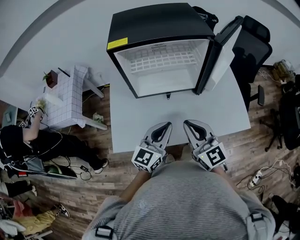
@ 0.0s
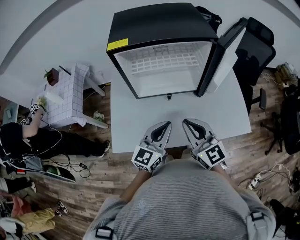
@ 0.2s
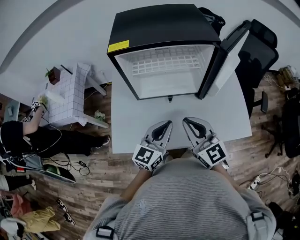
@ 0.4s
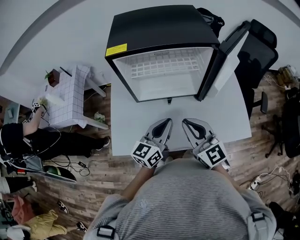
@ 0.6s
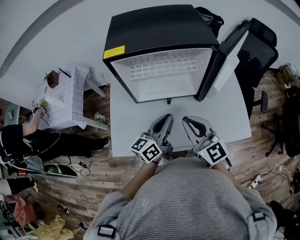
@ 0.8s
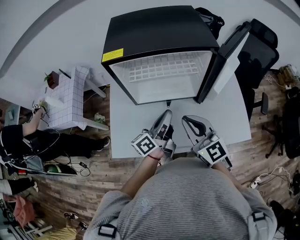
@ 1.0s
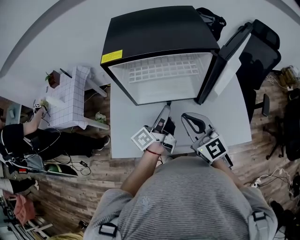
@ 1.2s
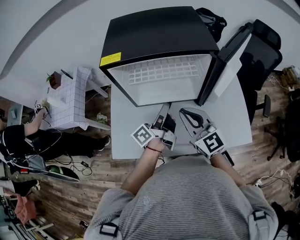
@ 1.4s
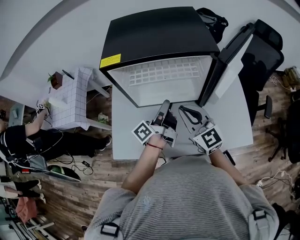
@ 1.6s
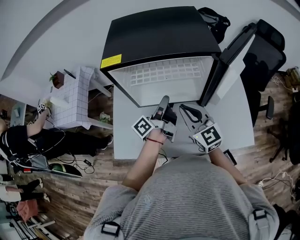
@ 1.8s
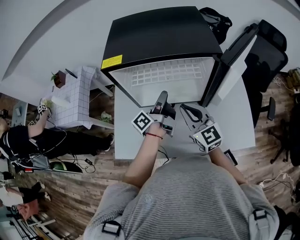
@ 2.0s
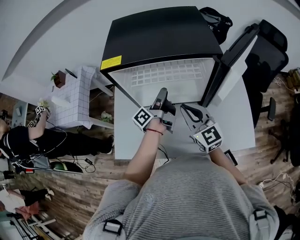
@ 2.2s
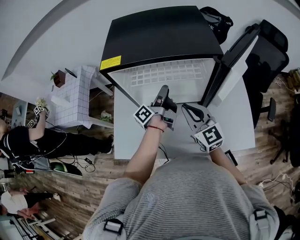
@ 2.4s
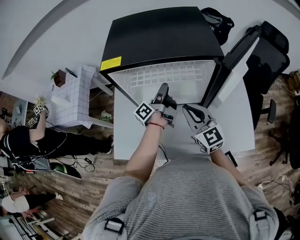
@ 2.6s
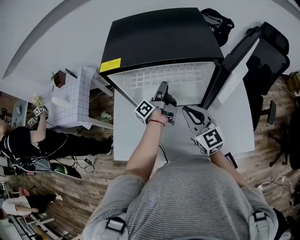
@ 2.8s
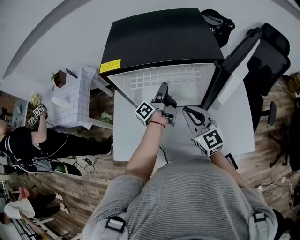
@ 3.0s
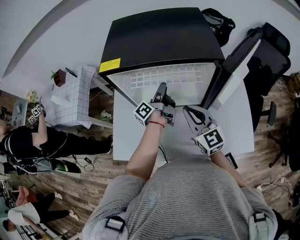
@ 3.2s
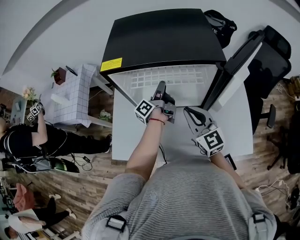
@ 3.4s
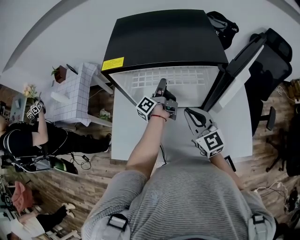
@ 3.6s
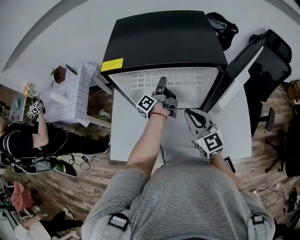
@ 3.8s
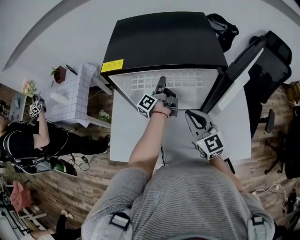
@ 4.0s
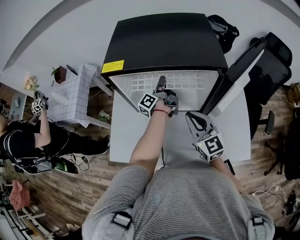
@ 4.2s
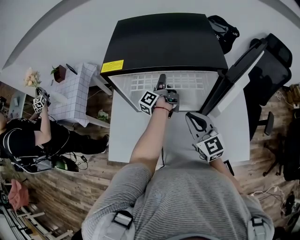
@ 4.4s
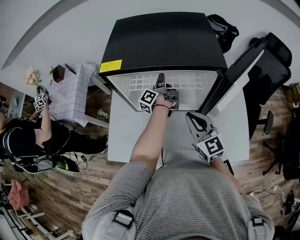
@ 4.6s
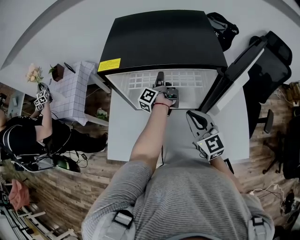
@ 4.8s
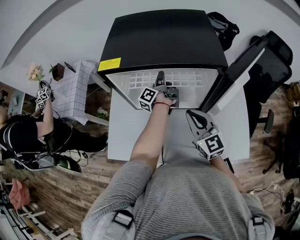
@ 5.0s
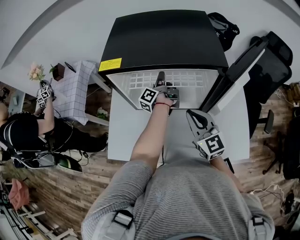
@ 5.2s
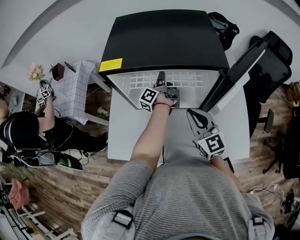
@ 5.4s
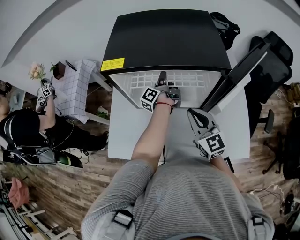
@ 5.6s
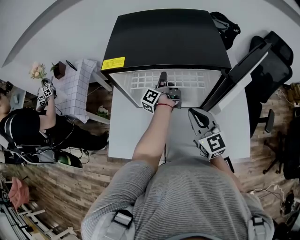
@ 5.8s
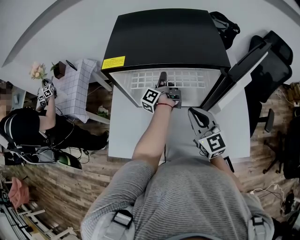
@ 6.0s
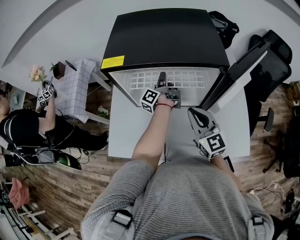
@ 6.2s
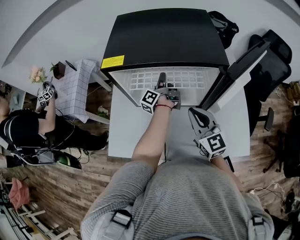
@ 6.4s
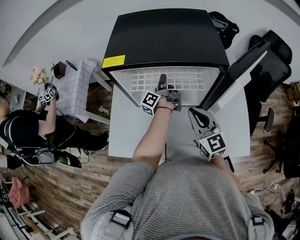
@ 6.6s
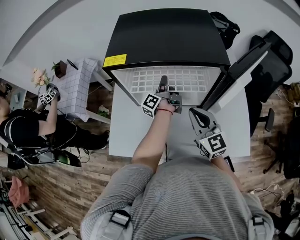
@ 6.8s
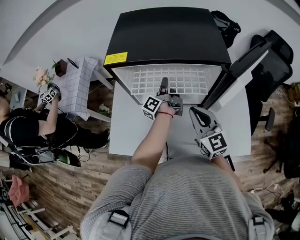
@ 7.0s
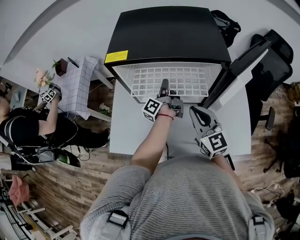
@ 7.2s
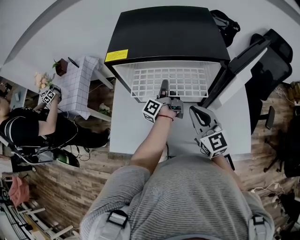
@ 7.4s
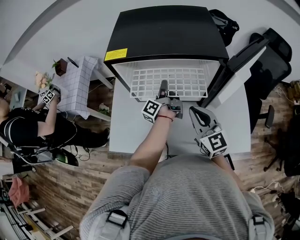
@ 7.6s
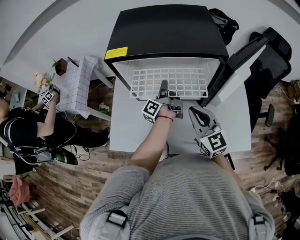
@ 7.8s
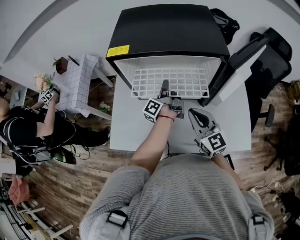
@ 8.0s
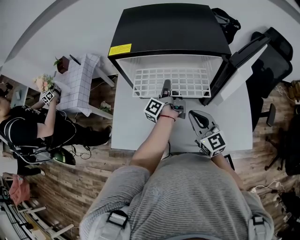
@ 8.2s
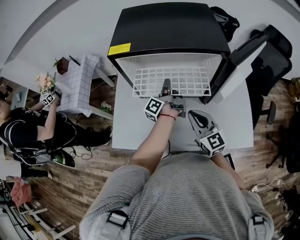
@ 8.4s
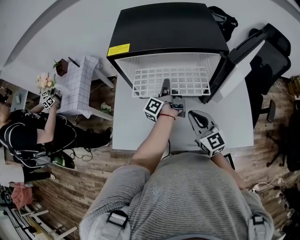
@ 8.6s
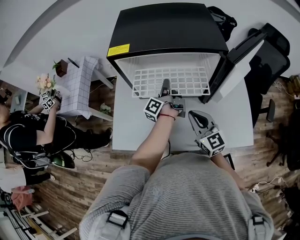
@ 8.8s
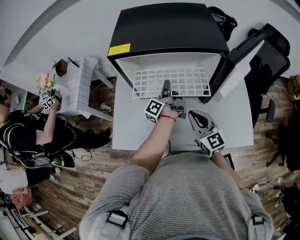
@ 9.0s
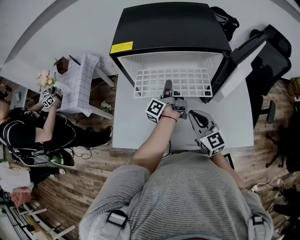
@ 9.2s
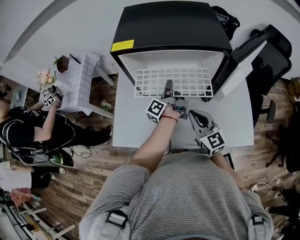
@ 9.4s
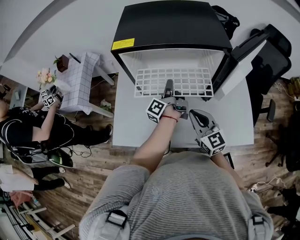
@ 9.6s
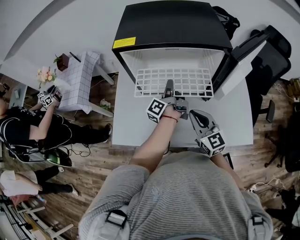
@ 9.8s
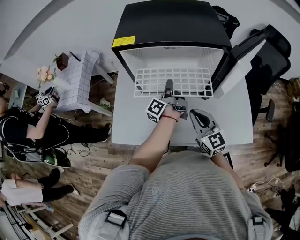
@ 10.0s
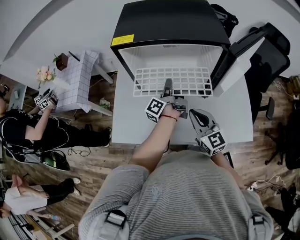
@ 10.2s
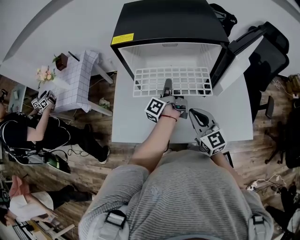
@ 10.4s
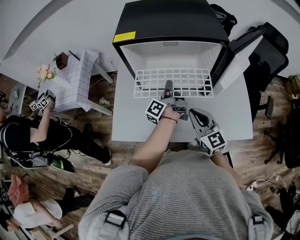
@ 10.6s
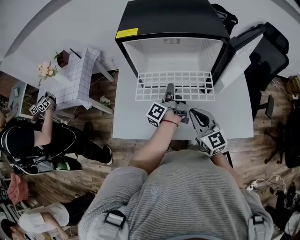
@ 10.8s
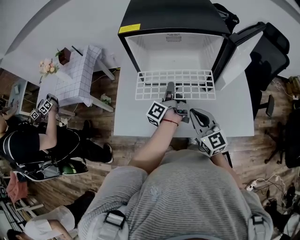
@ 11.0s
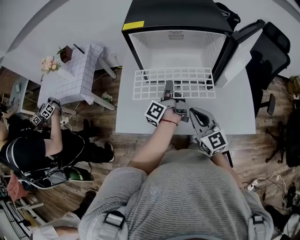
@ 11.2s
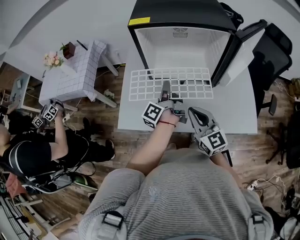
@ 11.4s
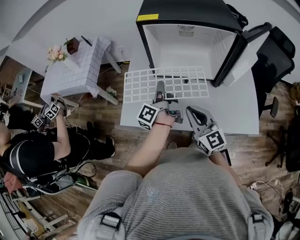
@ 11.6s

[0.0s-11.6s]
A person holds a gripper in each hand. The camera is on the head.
0.0s to 1.4s: The two grippers go some 15 cm forward. The left gripper rotates around the line of its fingers by roughly 70 degrees, counterclockwise from behind.
1.4s to 2.8s: The right gripper changes place by about 5 cm; the left gripper is displaced forward by some 15 cm, and opens.
2.8s to 4.4s: The left gripper travels forward by some 10 cm.
4.4s to 5.8s: The left gripper closes up.
5.8s to 7.2s: The left gripper travels backward by approximately 5 cm.
7.2s to 8.8s: The right gripper travels downward by approximately 5 cm.
8.8s to 10.2s: The grippers make only small movements.
10.2s to 11.6s: Both grippers move to the left and backward, approximately 15 cm.

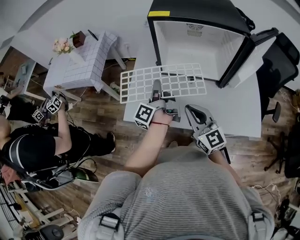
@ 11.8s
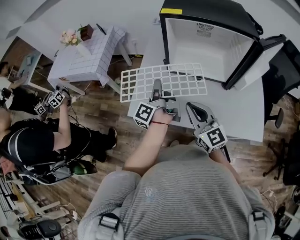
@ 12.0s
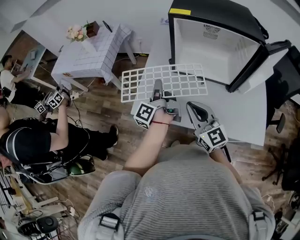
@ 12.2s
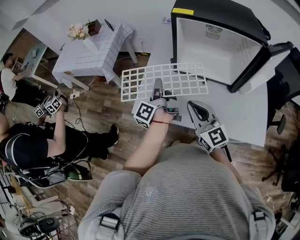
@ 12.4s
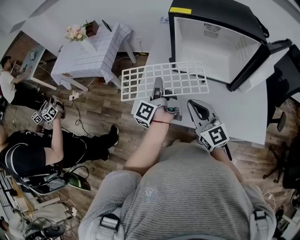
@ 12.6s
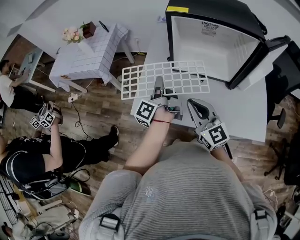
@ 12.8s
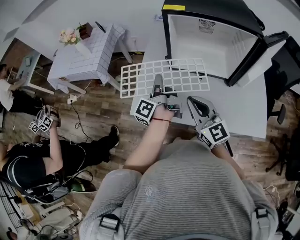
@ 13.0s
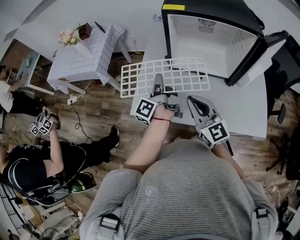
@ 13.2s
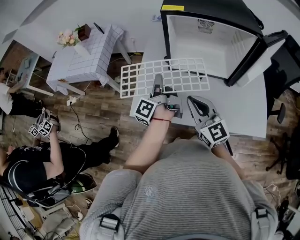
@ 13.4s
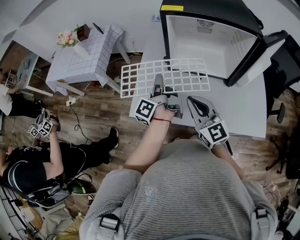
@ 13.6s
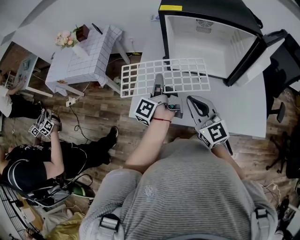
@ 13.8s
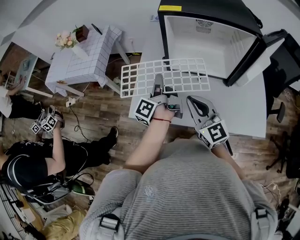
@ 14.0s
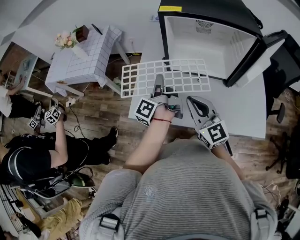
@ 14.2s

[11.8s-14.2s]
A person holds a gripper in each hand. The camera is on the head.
13.0s to 14.2s: The grippers move only a little.

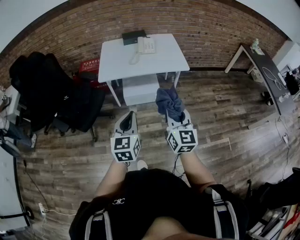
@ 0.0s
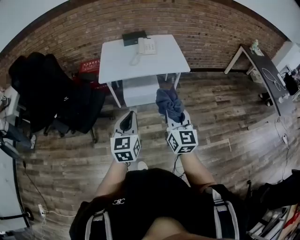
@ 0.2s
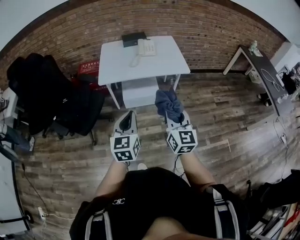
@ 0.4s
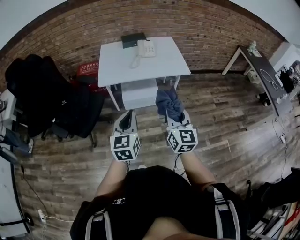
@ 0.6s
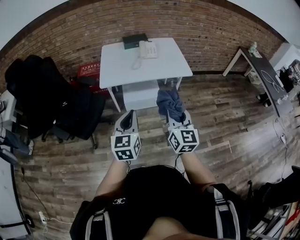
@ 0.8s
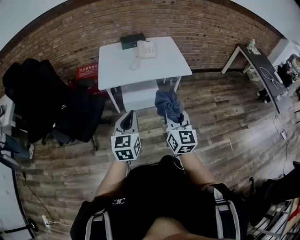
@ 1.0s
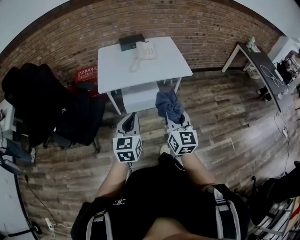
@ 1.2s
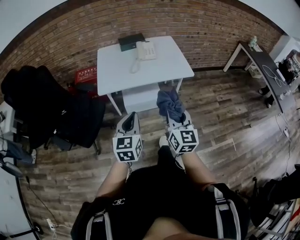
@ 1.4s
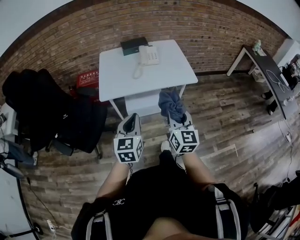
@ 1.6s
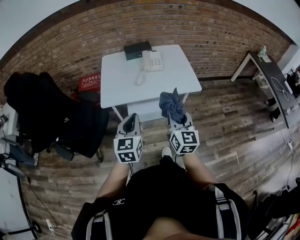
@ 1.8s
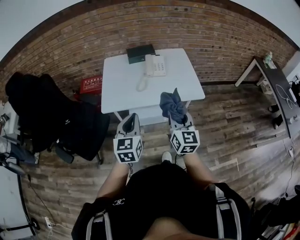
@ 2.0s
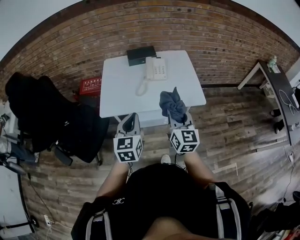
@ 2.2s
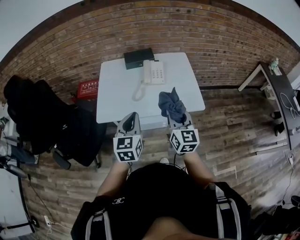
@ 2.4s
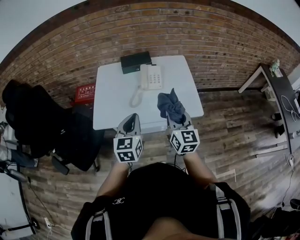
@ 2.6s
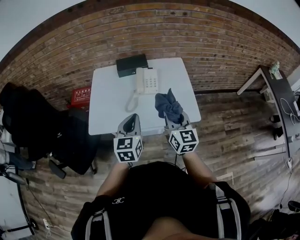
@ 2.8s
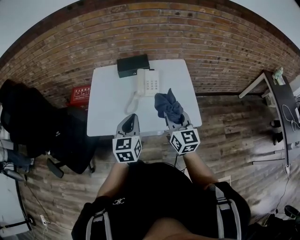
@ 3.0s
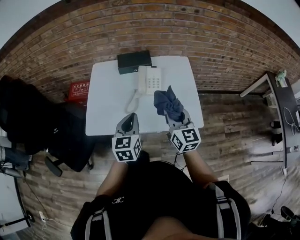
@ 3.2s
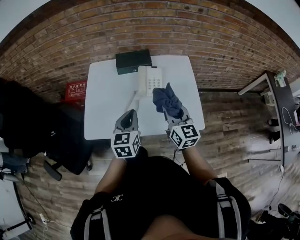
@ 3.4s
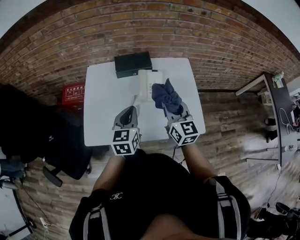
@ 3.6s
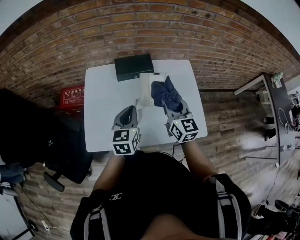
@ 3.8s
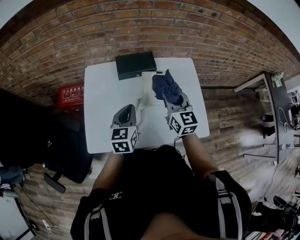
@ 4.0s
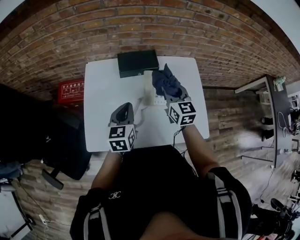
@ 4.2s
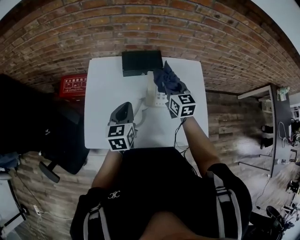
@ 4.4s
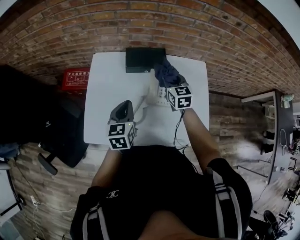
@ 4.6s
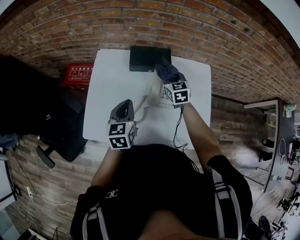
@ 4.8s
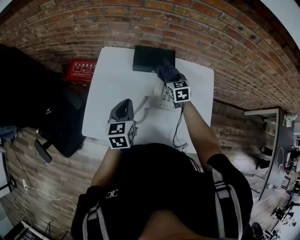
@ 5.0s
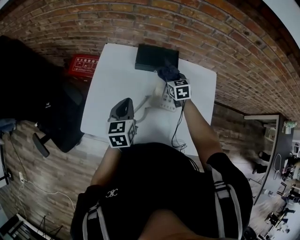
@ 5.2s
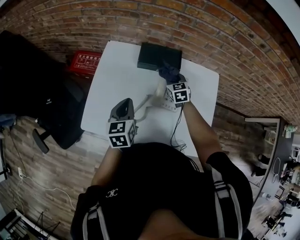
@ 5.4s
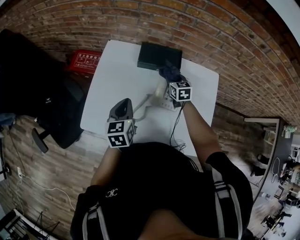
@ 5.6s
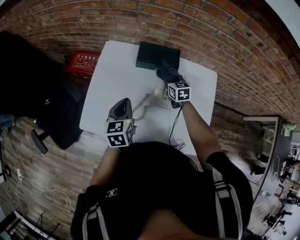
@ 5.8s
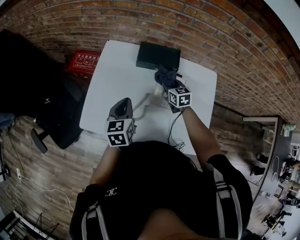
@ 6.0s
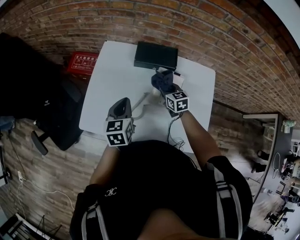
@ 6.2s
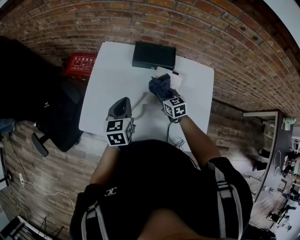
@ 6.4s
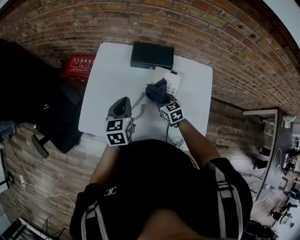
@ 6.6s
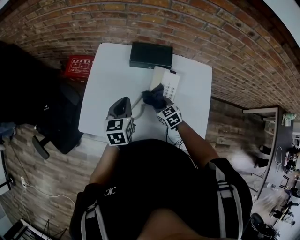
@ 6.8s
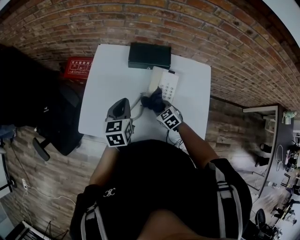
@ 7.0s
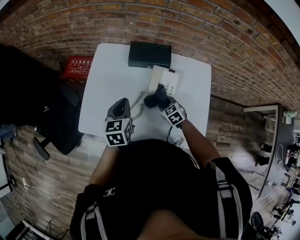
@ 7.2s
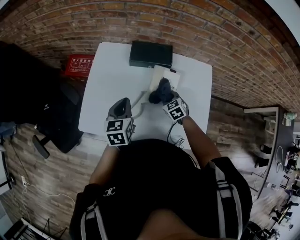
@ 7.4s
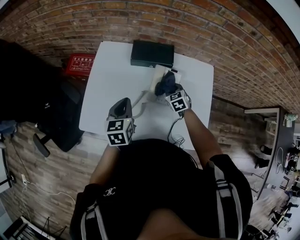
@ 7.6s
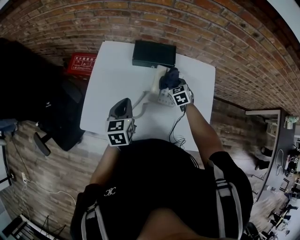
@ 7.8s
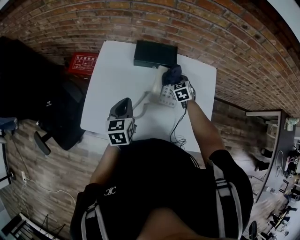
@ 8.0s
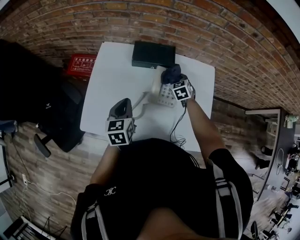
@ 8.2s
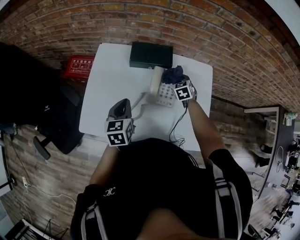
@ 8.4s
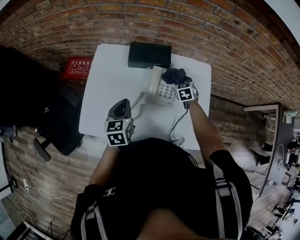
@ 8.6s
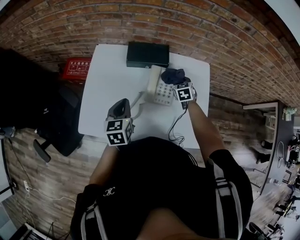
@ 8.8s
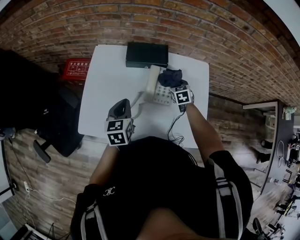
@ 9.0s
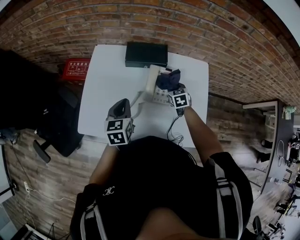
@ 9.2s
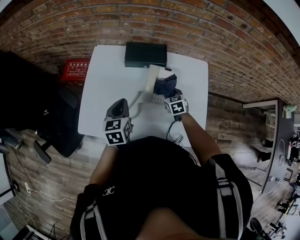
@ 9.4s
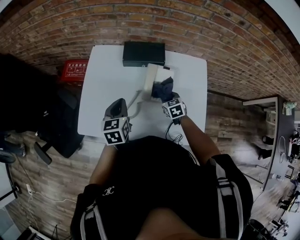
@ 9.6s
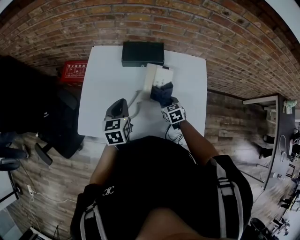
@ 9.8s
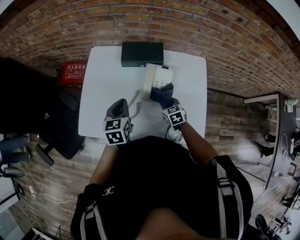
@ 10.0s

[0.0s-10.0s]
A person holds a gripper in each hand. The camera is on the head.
0.0s to 1.4s: The two grippers go some 10 cm forward and to the left.
1.4s to 2.8s: Both grippers travel together forward, about 35 cm.
2.8s to 4.2s: Both grippers travel together forward, roughly 25 cm.
4.2s to 5.8s: The right gripper is displaced downward and forward by roughly 20 cm, and swivels roughly 30 degrees; the left gripper changes its angle by some 20 degrees.
5.8s to 7.2s: The right gripper shifts some 15 cm backward and downward, and swivels some 20 degrees.
7.2s to 8.6s: The right gripper shifts roughly 15 cm forward and to the right, and swivels some 20 degrees.
8.6s to 10.0s: The right gripper heads backward and to the left, covering some 15 cm.
